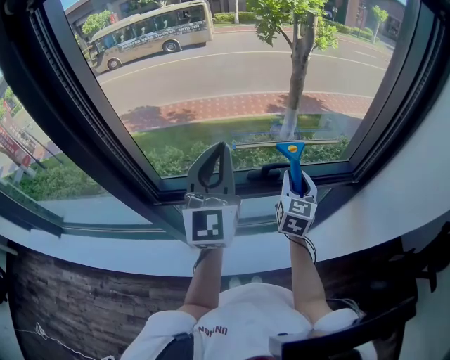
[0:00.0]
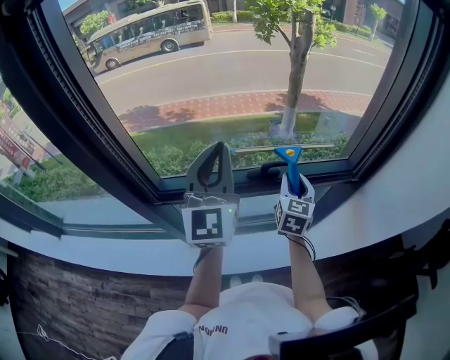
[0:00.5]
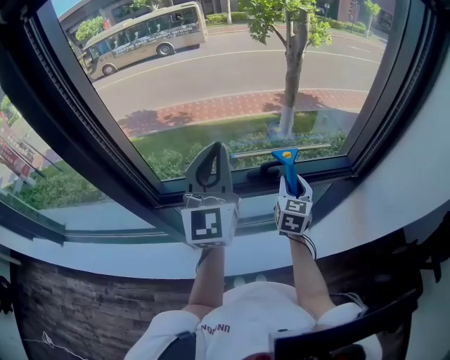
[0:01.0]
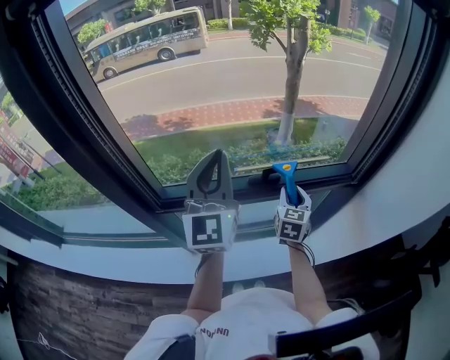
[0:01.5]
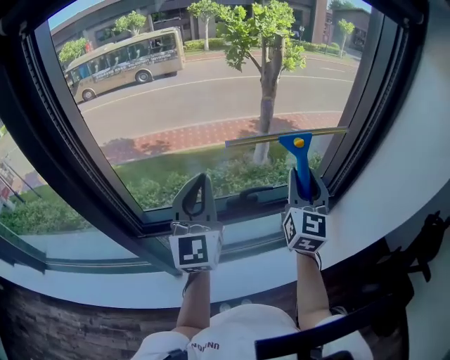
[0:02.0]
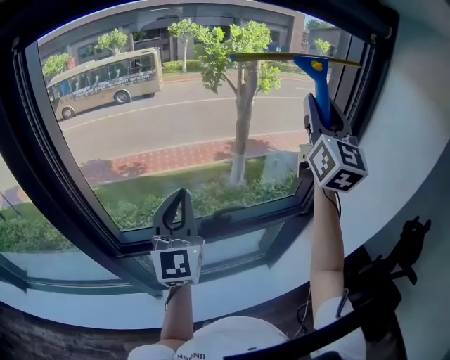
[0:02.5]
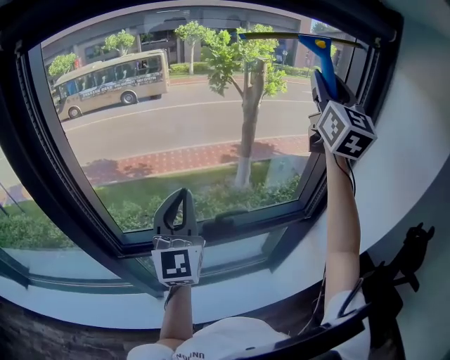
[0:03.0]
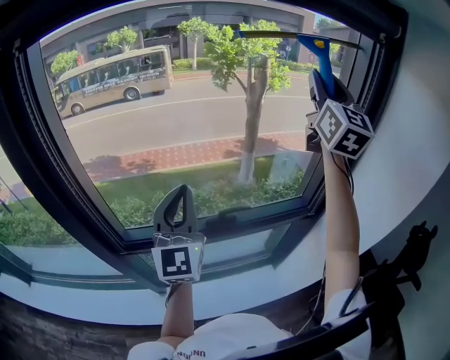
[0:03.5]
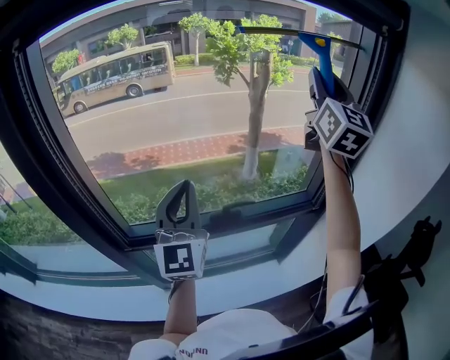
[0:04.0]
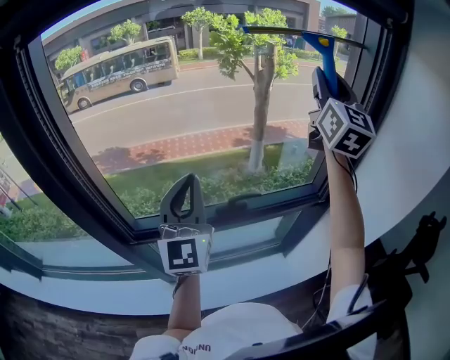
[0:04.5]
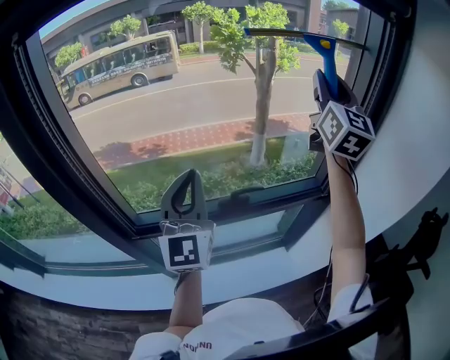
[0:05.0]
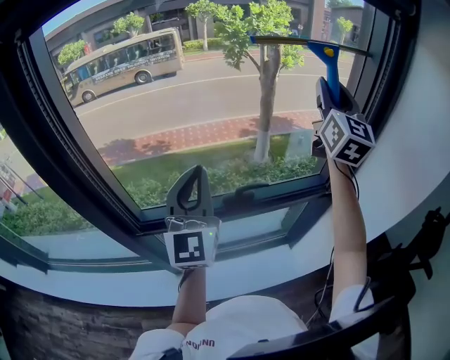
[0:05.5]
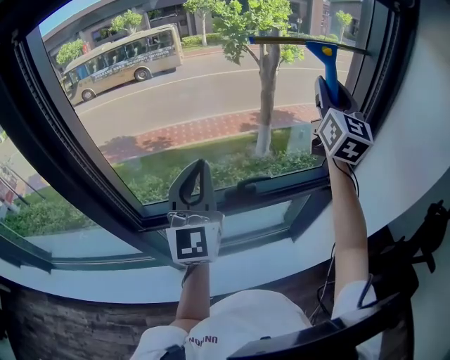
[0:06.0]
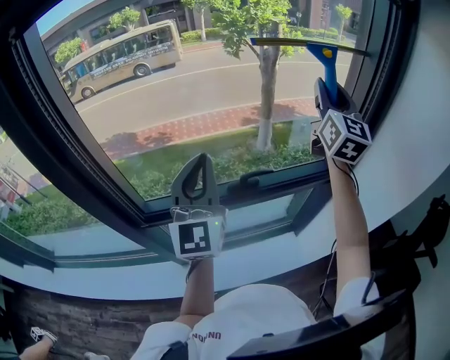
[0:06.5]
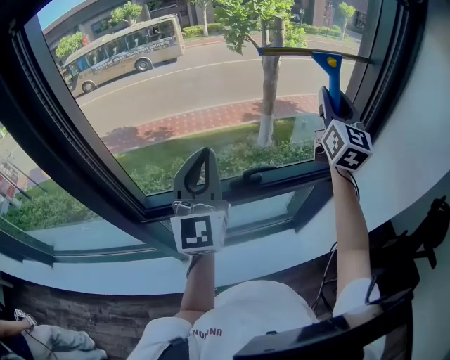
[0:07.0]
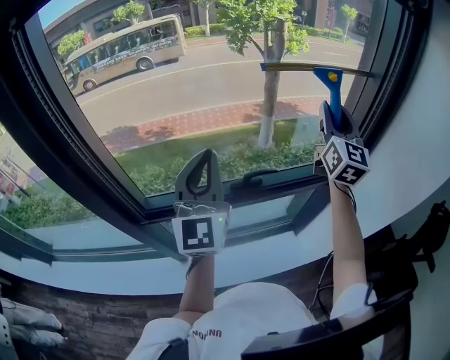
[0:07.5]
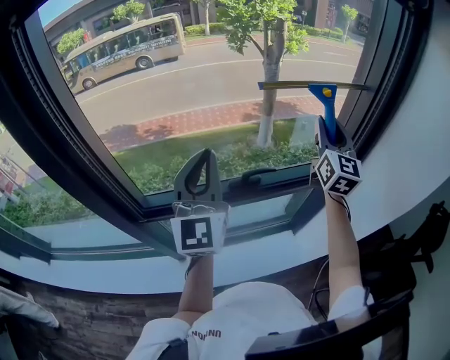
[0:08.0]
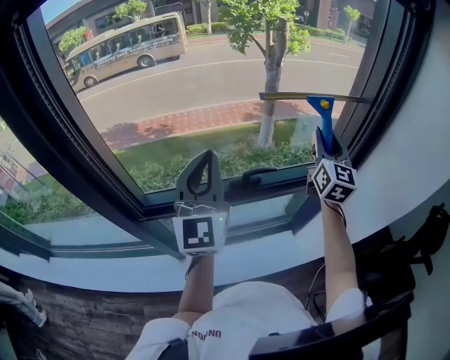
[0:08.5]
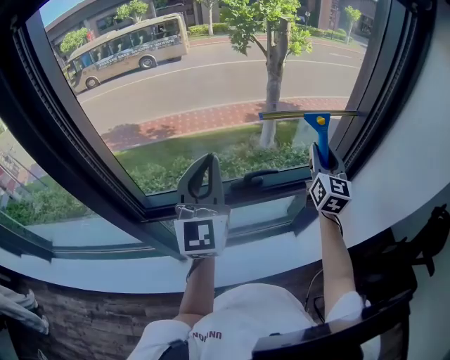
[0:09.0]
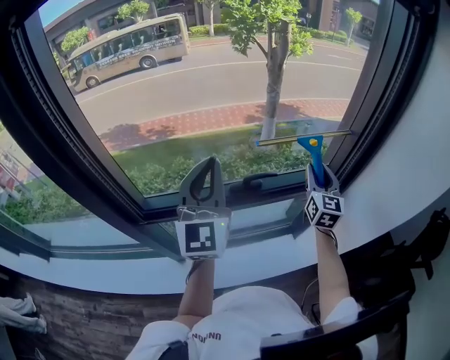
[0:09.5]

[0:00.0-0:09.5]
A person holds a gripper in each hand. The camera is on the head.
0:00.0 to 0:02.0: The right gripper shifts some 15 cm upward, and swivels about 20 degrees.
0:02.0 to 0:04.0: The right gripper shifts about 25 cm upward.
0:04.0 to 0:05.5: The right gripper heads downward, covering some 5 cm.
0:05.5 to 0:07.5: The right gripper is displaced downward by roughly 10 cm.
0:07.5 to 0:09.5: The right gripper moves downward, roughly 20 cm.

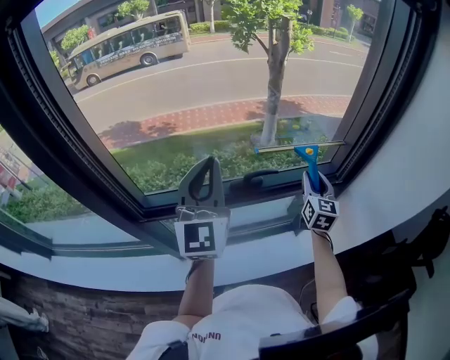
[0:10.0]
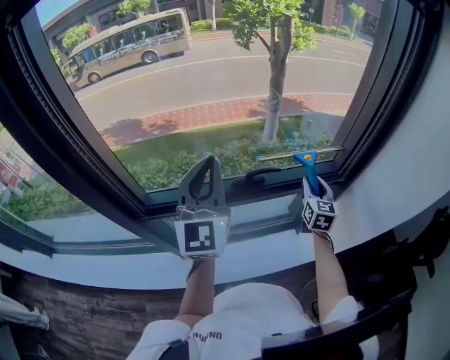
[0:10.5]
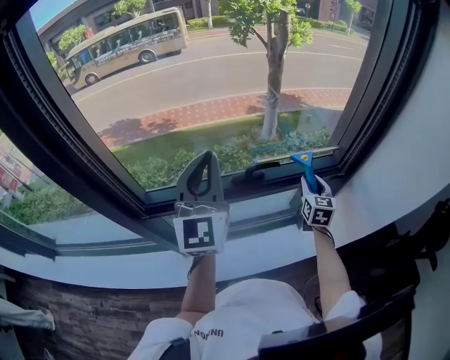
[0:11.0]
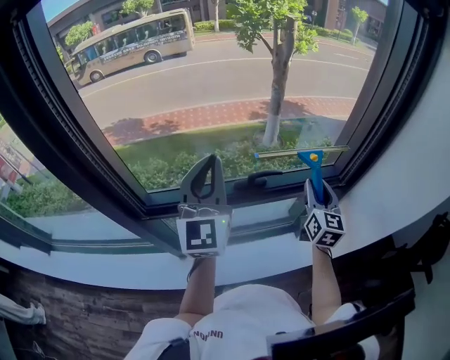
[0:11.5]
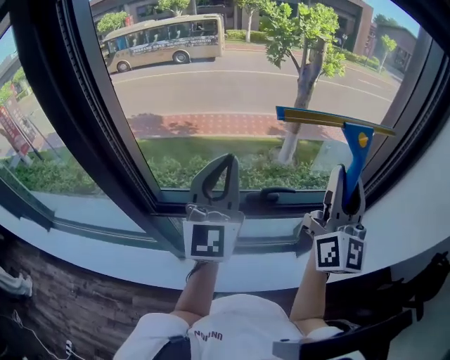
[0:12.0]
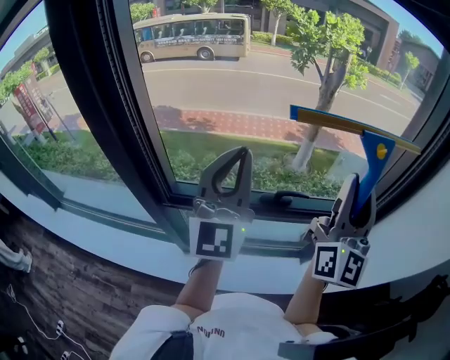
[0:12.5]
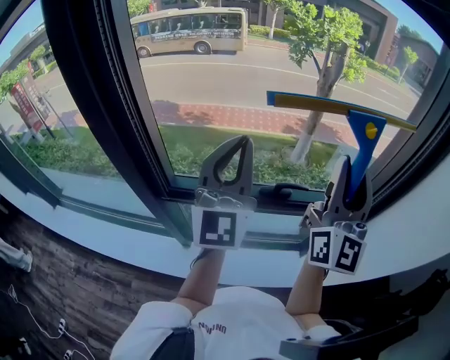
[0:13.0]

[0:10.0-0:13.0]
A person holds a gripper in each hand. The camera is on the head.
0:10.0 to 0:11.5: The right gripper moves about 5 cm.
0:11.5 to 0:13.0: The right gripper travels upward and to the left by roughly 25 cm, and tips its fingers upward by about 40 degrees. Meanwhile the left gripper moves upward, about 5 cm.

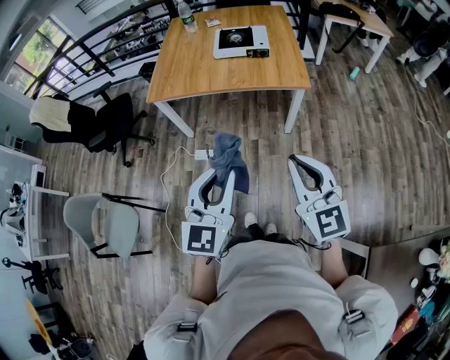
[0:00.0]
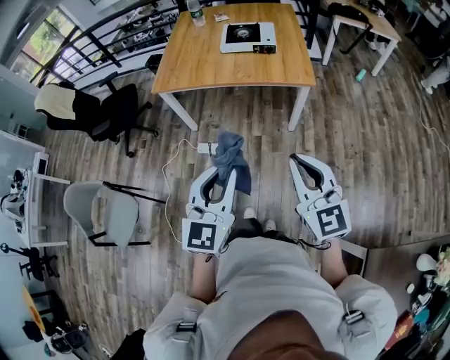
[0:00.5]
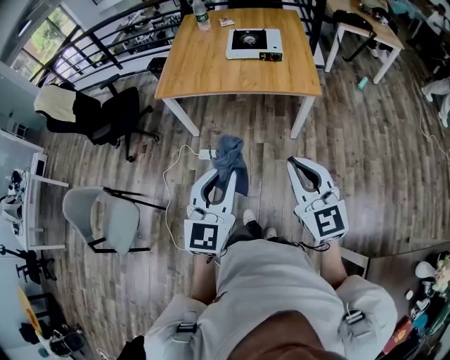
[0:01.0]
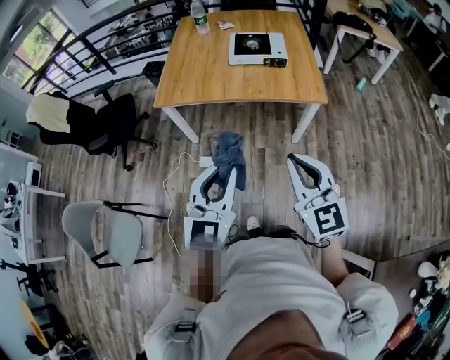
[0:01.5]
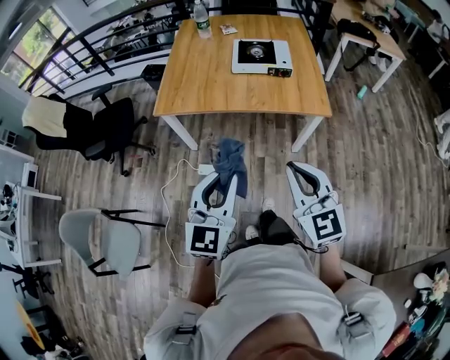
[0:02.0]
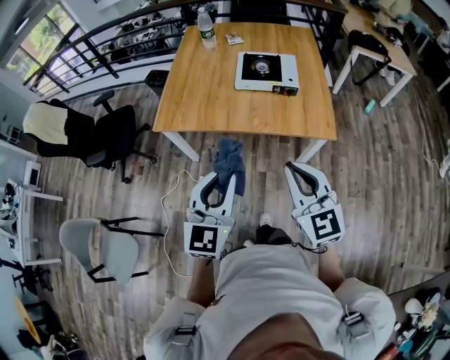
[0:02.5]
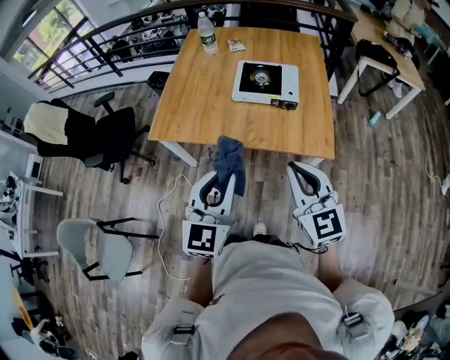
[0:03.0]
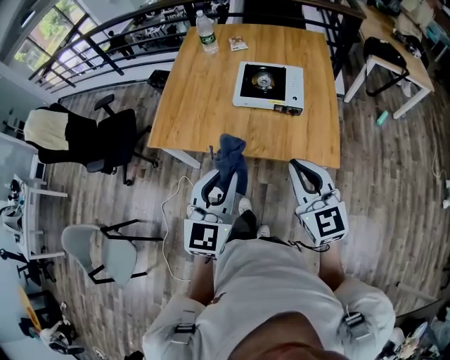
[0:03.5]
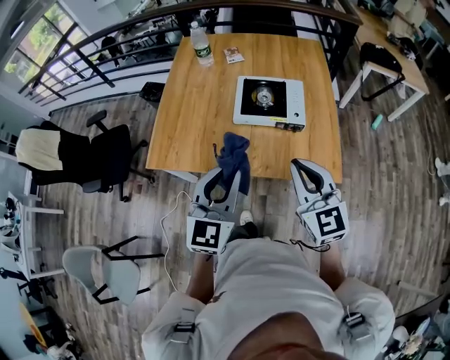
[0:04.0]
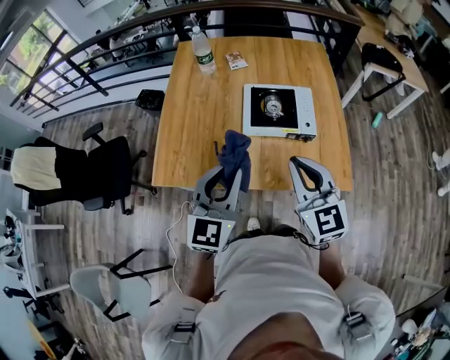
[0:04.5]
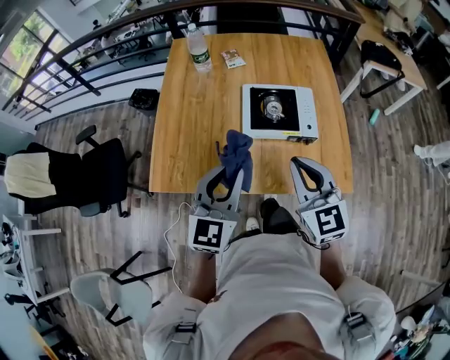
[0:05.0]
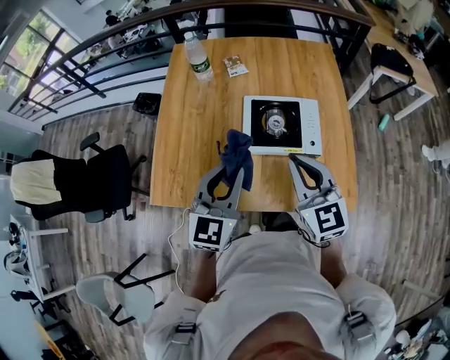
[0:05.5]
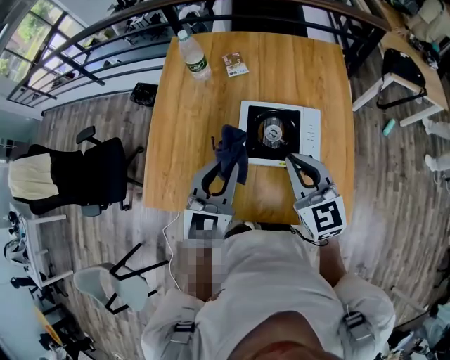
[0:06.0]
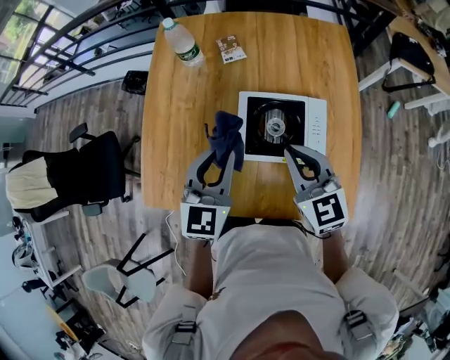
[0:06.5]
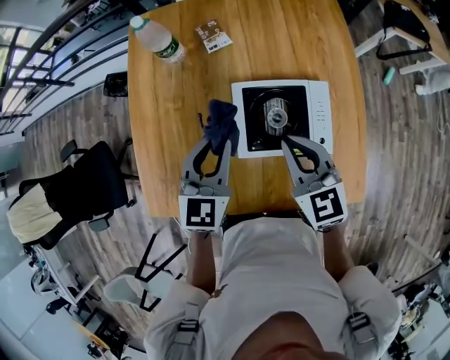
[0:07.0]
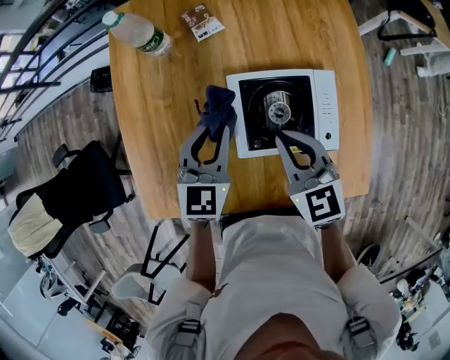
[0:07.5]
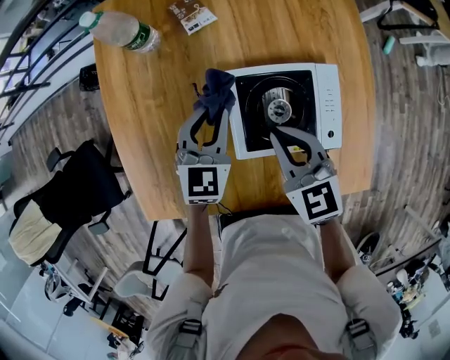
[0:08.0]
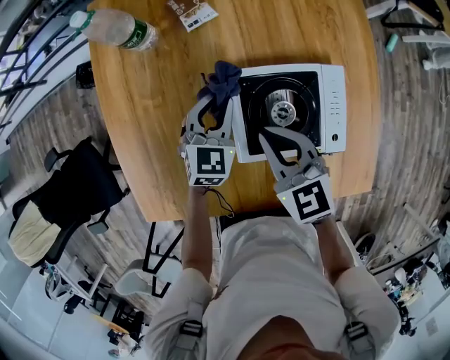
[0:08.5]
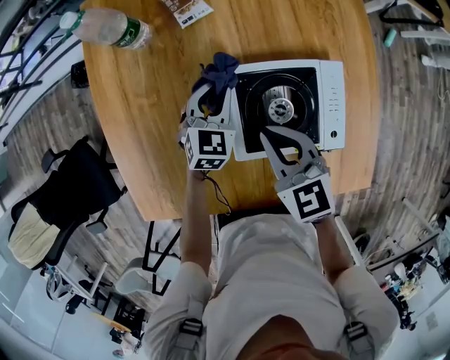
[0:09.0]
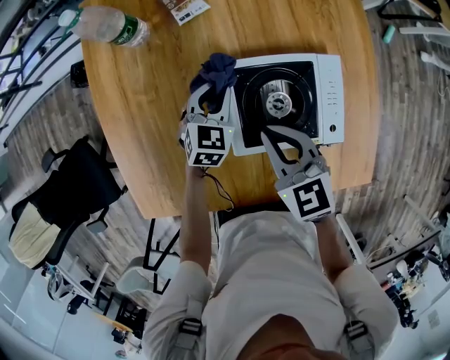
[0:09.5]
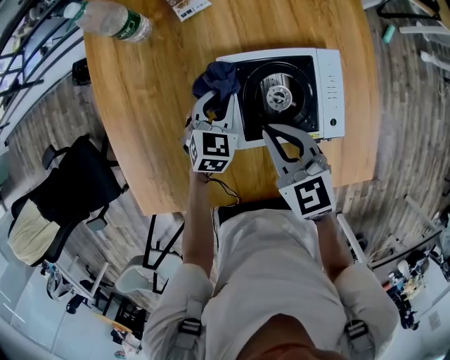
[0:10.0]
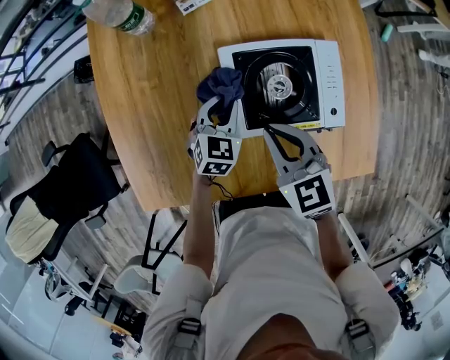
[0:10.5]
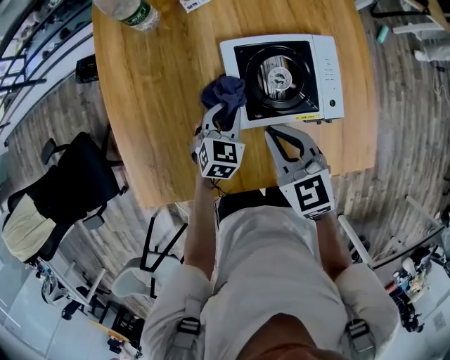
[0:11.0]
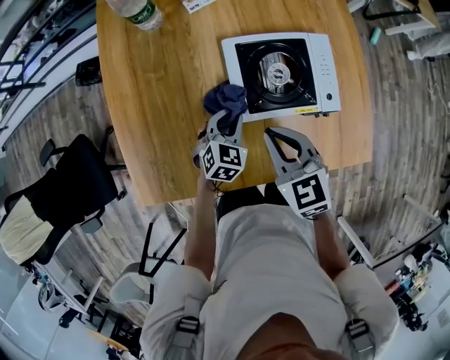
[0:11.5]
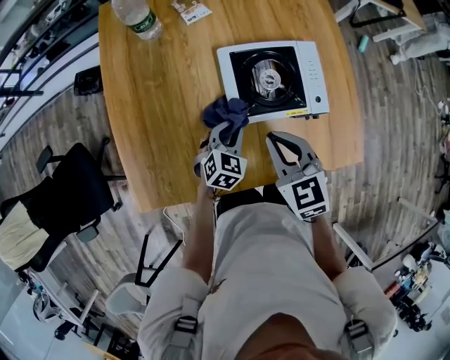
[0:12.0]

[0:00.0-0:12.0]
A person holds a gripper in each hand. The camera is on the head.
0:00.0 to 0:02.0: Both grippers travel together forward and to the left, roughly 20 cm.
0:02.0 to 0:04.0: The two grippers go roughly 35 cm forward.
0:04.0 to 0:06.0: The grippers both shift forward by some 25 cm.
0:06.0 to 0:08.0: The left gripper is displaced forward and downward by roughly 25 cm; the right gripper goes approximately 20 cm downward and forward.
0:08.0 to 0:10.0: The left gripper travels downward by roughly 10 cm.
0:10.0 to 0:12.0: Both grippers travel together backward, approximately 15 cm.

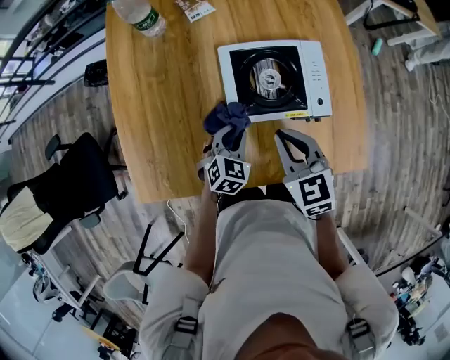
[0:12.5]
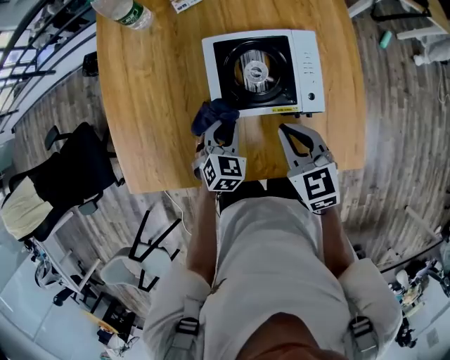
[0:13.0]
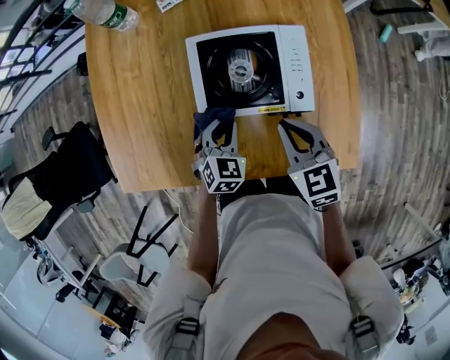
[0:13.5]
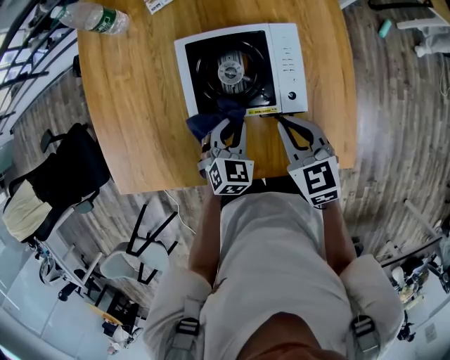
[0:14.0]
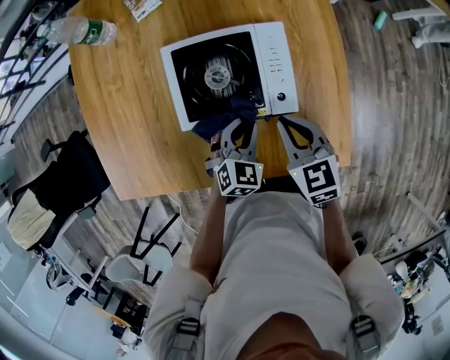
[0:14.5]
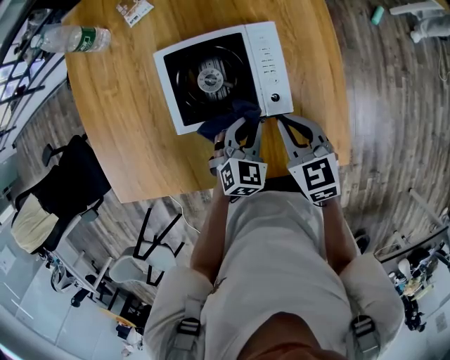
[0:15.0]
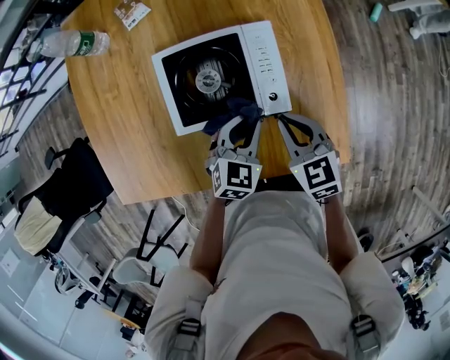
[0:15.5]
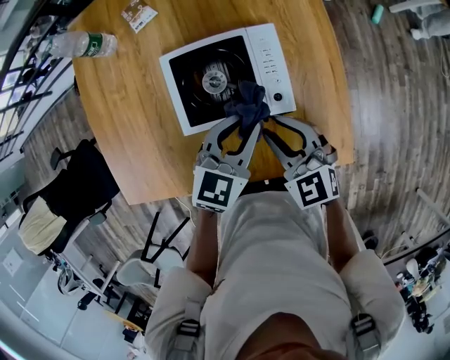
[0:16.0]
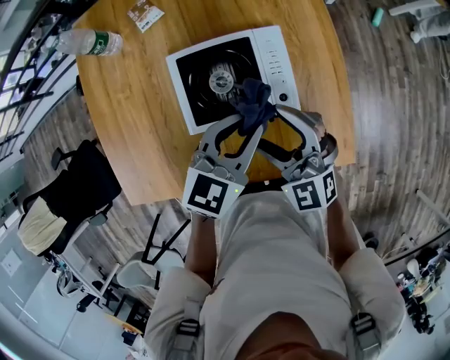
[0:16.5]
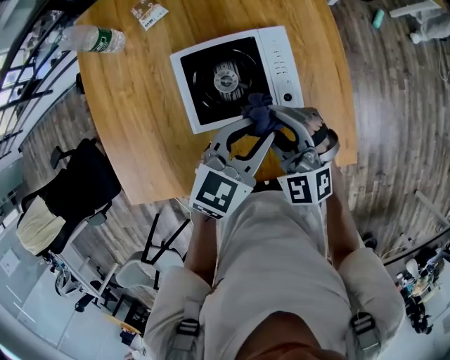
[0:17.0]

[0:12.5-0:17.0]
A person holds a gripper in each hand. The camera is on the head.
0:12.5 to 0:14.5: The left gripper is displaced to the right by about 15 cm. The right gripper shifts approximately 15 cm to the right and downward.
0:14.5 to 0:17.0: The left gripper moves upward, some 15 cm, and rotates some 30 degrees. The right gripper moves to the left and upward, some 10 cm, rotates around the line of its fingers by approximately 40 degrees, counterclockwise from behind, and opens its fingers.
